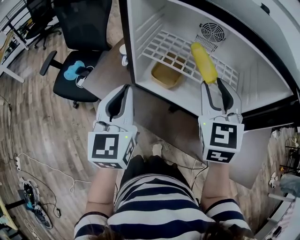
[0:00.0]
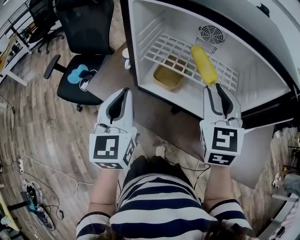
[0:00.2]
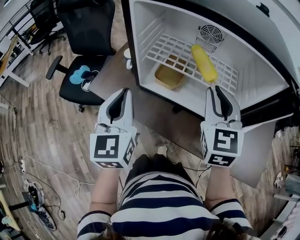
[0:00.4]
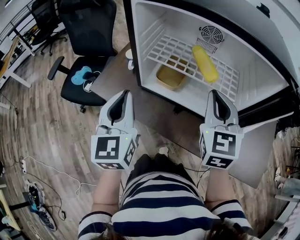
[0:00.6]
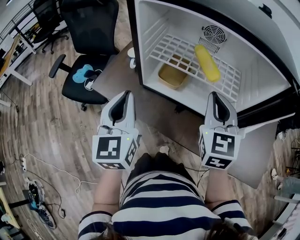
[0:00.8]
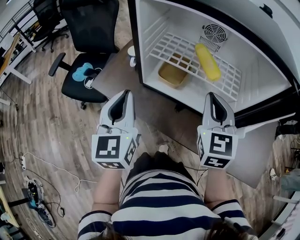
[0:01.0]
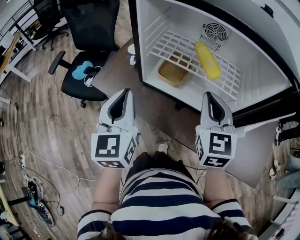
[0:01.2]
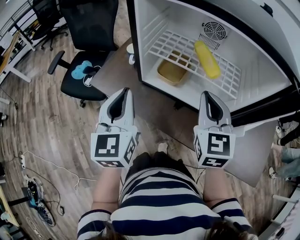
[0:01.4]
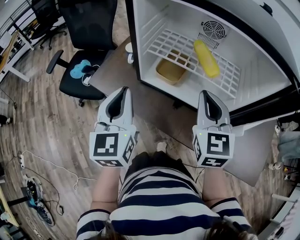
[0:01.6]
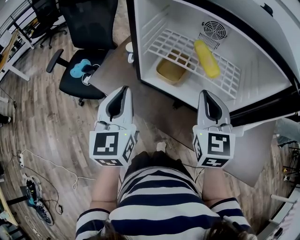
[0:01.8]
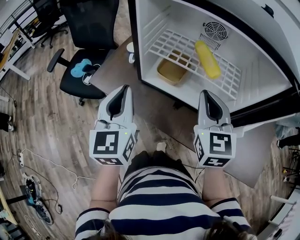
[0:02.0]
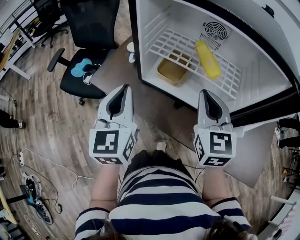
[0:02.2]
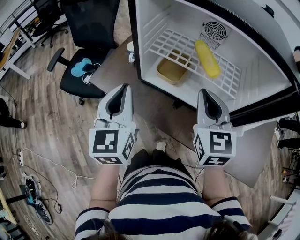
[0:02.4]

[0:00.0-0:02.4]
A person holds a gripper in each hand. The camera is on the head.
0:00.0 to 0:01.2: The right gripper shifts by approximately 5 cm, and closes.
0:01.2 to 0:02.4: The grippers move only a little.

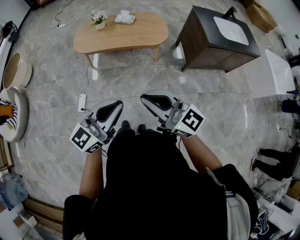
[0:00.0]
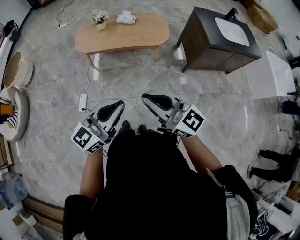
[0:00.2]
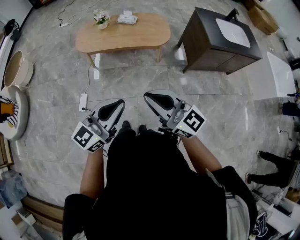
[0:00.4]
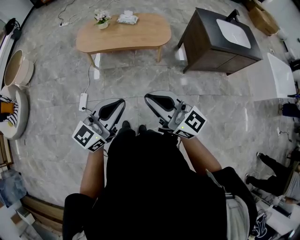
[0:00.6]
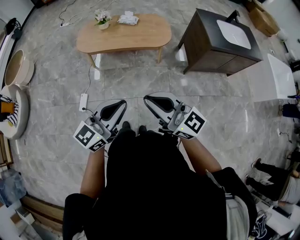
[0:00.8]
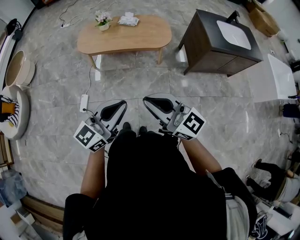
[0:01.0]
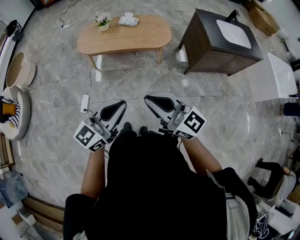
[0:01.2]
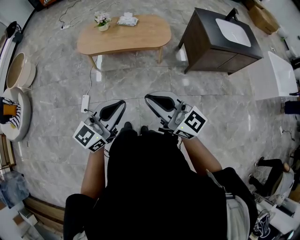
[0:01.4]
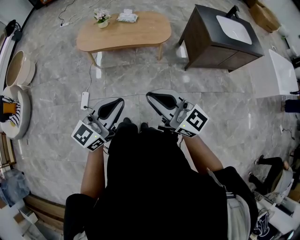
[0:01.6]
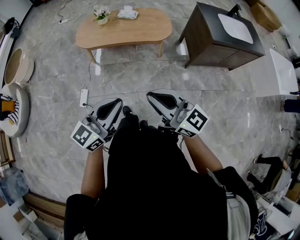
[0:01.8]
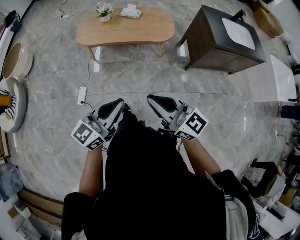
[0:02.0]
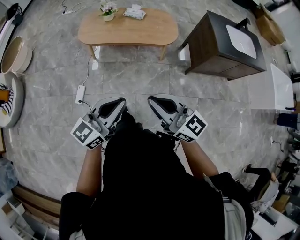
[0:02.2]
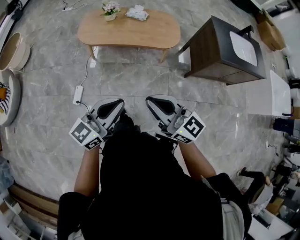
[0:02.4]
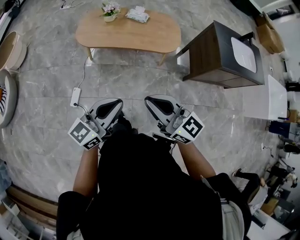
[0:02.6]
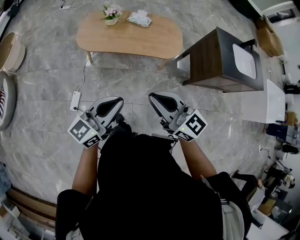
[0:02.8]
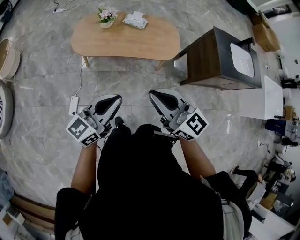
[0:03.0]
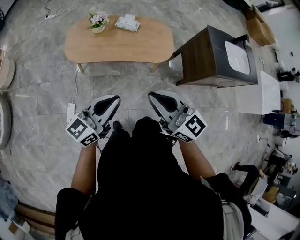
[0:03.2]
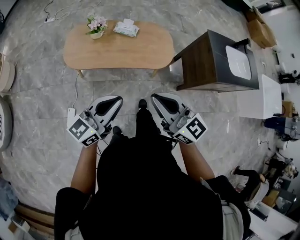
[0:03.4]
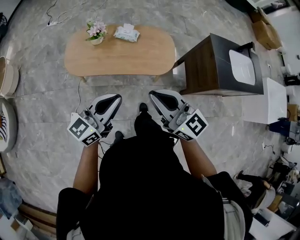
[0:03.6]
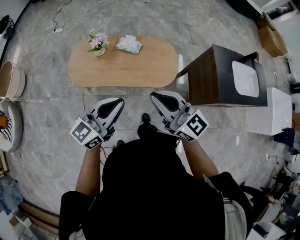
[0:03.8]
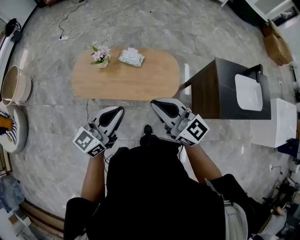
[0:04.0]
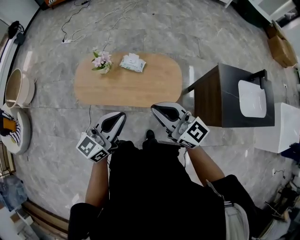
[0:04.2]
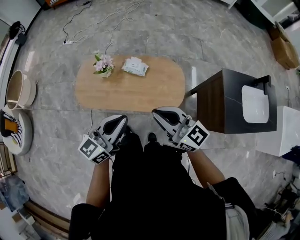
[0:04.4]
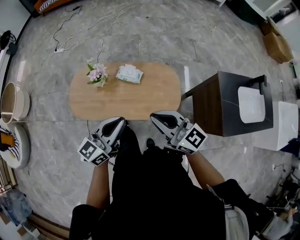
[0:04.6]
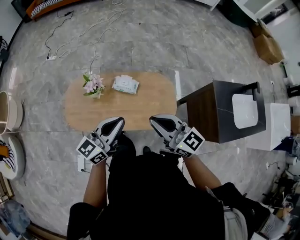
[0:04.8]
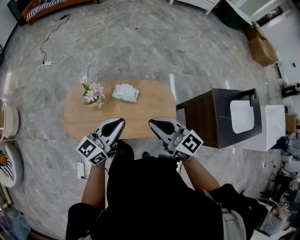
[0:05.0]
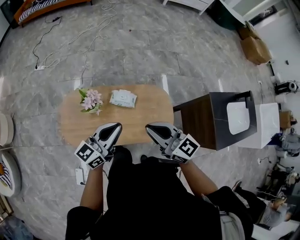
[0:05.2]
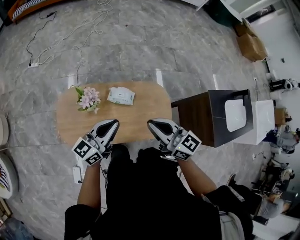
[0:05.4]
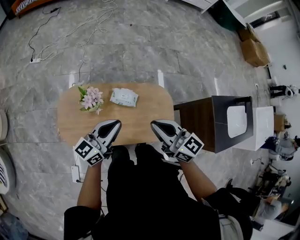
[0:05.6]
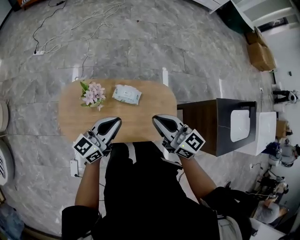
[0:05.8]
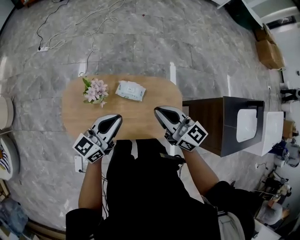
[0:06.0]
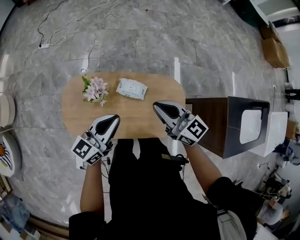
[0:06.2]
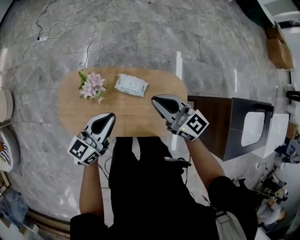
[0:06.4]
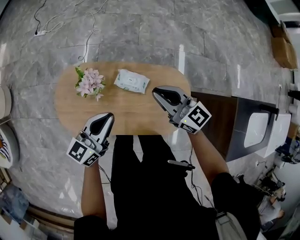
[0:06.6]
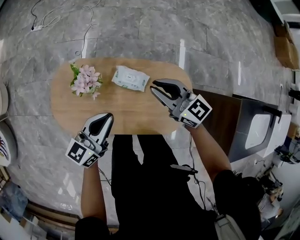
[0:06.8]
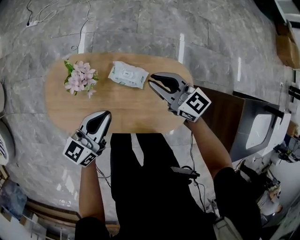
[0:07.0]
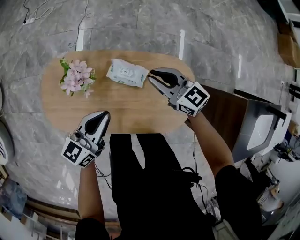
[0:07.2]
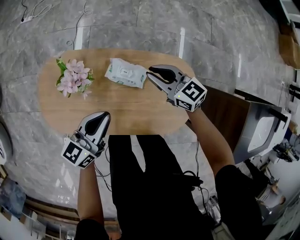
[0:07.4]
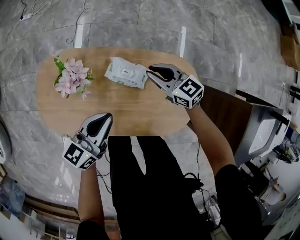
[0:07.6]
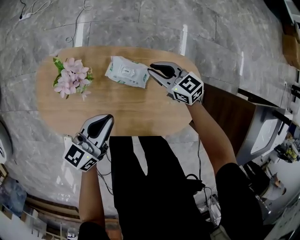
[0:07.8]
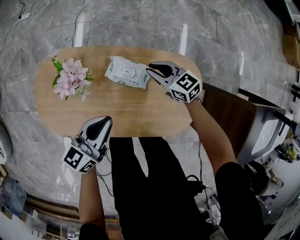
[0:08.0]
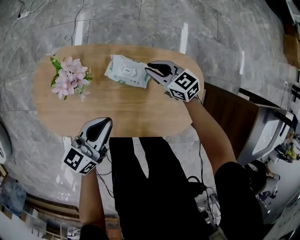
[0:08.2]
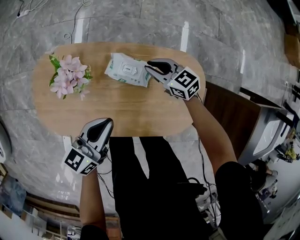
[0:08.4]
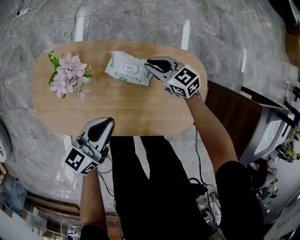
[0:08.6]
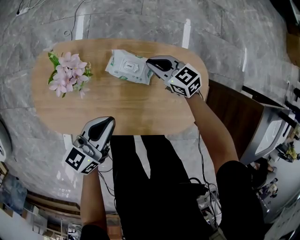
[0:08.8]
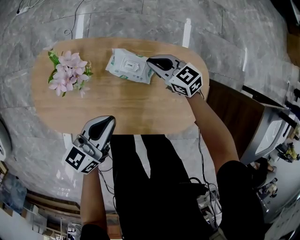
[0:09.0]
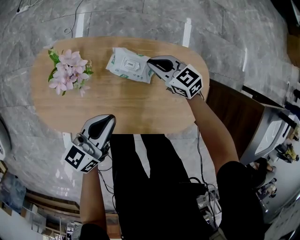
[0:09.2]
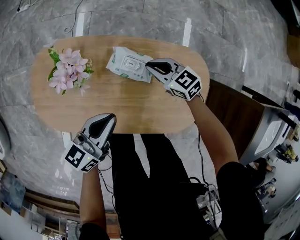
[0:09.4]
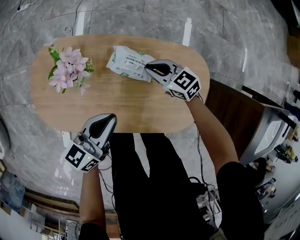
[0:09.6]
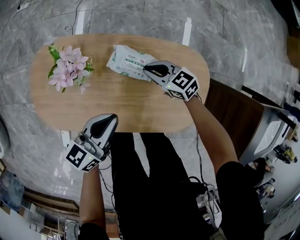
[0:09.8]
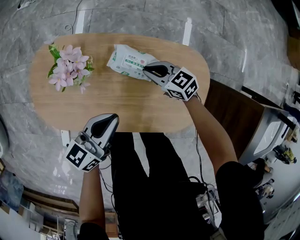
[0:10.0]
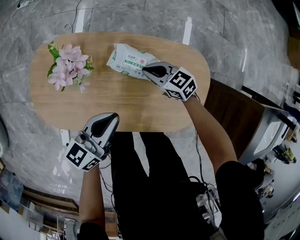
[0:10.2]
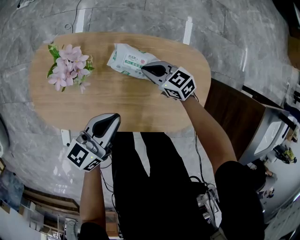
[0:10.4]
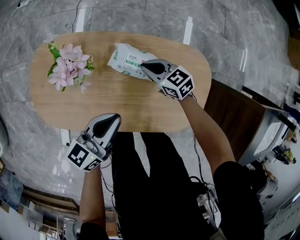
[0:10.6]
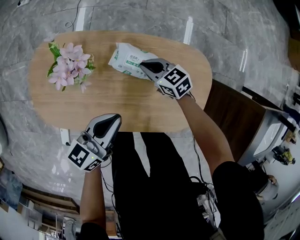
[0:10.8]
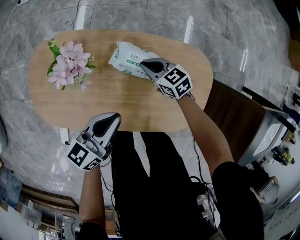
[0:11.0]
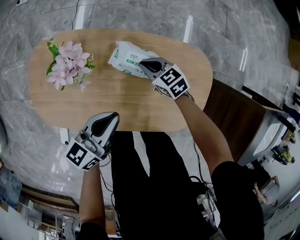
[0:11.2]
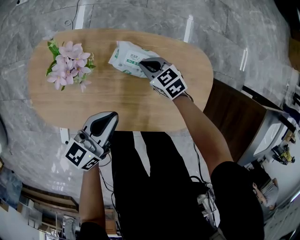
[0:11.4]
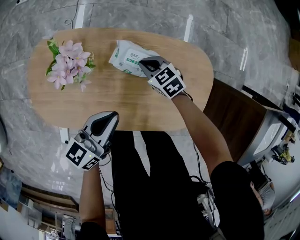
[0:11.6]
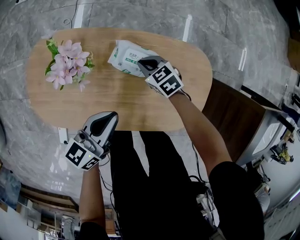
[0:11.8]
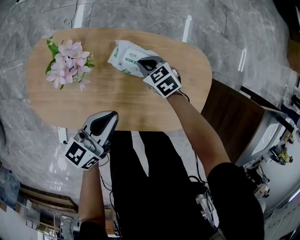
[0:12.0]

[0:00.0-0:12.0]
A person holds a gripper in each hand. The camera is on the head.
0:00.0 to 0:01.6: The grippers make only small movements.
0:01.6 to 0:03.0: Both grippers travel together forward, some 25 cm.
0:03.0 to 0:04.4: Both grippers travel together forward and to the right, about 35 cm.
0:04.4 to 0:06.0: The right gripper goes roughly 30 cm forward; the left gripper is displaced forward and to the left by roughly 30 cm.
0:06.0 to 0:07.6: The right gripper travels downward and forward by roughly 40 cm, and changes its angle by about 20 degrees. The left gripper heads downward, covering roughly 25 cm.
0:07.6 to 0:09.0: The left gripper shifts by about 5 cm. Meanwhile the right gripper moves downward, some 10 cm.
0:09.0 to 0:10.4: The right gripper shifts by some 5 cm.
0:10.4 to 0:12.0: The right gripper shifts by some 5 cm, and swivels roughly 20 degrees.

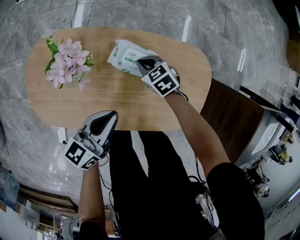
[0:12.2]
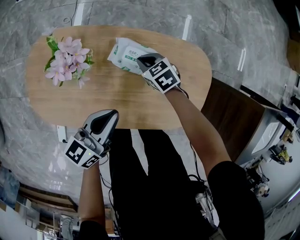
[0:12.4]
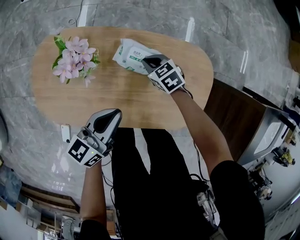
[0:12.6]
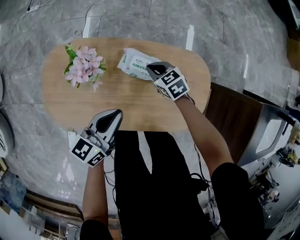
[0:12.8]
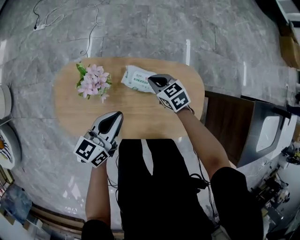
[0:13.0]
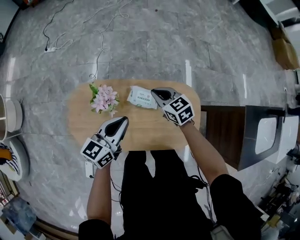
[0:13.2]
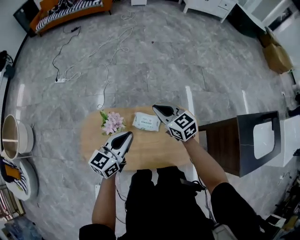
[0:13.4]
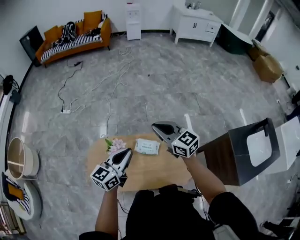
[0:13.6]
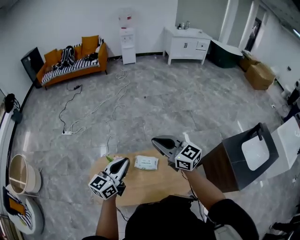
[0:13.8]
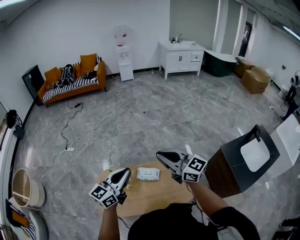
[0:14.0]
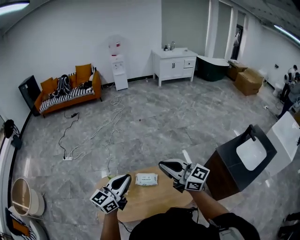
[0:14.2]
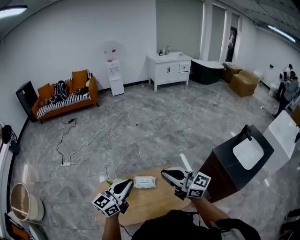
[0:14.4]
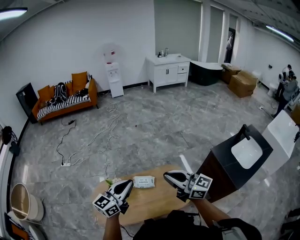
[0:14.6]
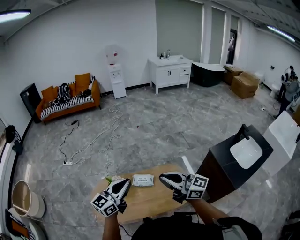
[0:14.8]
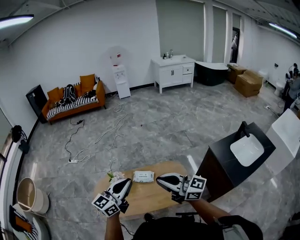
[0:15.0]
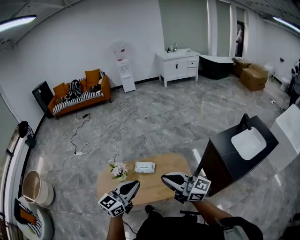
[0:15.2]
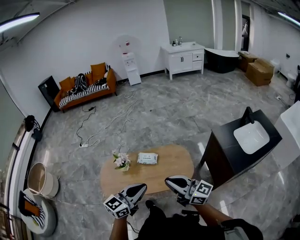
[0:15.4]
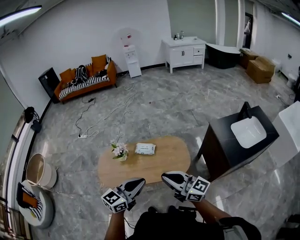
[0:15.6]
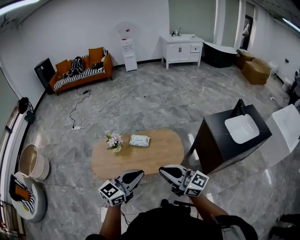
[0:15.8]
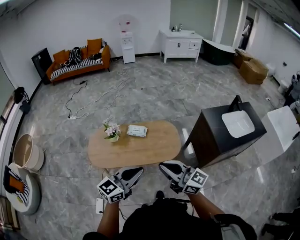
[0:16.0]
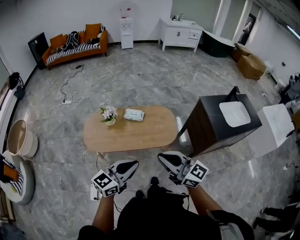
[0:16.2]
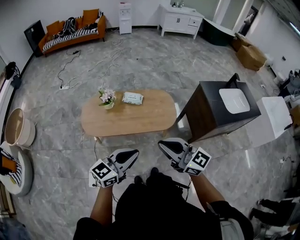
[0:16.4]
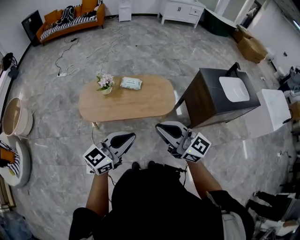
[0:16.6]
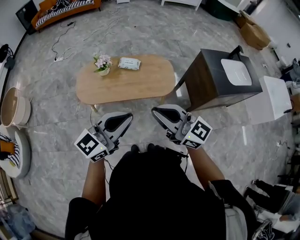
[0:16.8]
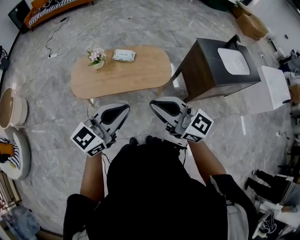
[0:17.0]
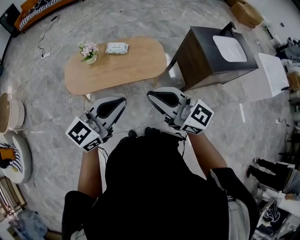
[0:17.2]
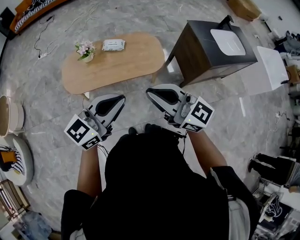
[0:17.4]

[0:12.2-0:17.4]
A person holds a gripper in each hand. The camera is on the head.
0:12.2 to 0:14.0: The left gripper heads upward, covering some 50 cm, and changes its angle by roughly 40 degrees. Meanwhile the right gripper travels upward by some 70 cm, and tilts its fingers roughly 60 degrees upward.
0:14.0 to 0:15.6: The left gripper travels backward and to the right by some 40 cm. Meanwhile the right gripper is displaced backward by some 40 cm.
0:15.6 to 0:17.4: Both grippers move backward, some 15 cm.

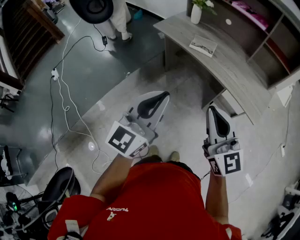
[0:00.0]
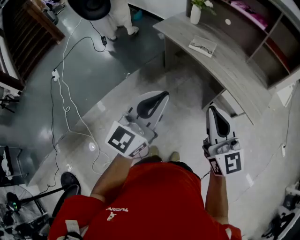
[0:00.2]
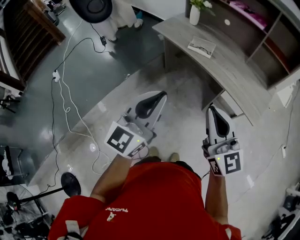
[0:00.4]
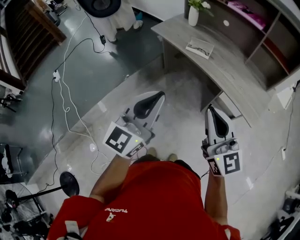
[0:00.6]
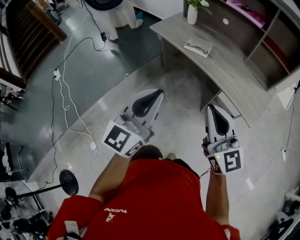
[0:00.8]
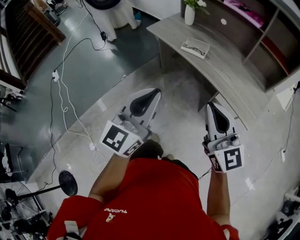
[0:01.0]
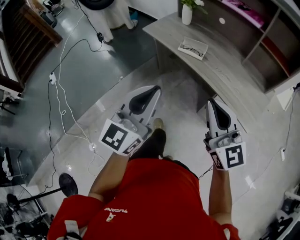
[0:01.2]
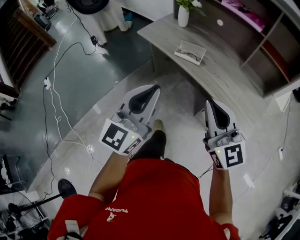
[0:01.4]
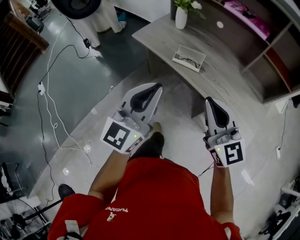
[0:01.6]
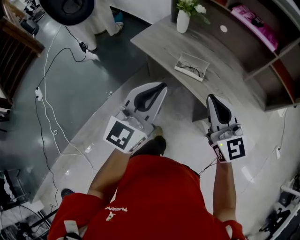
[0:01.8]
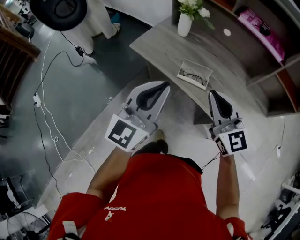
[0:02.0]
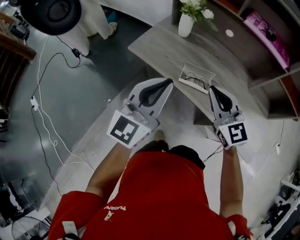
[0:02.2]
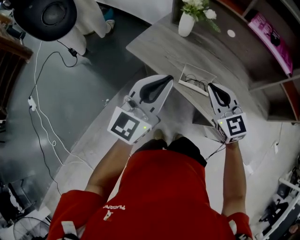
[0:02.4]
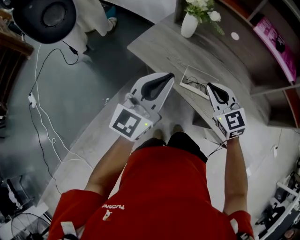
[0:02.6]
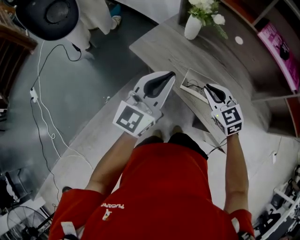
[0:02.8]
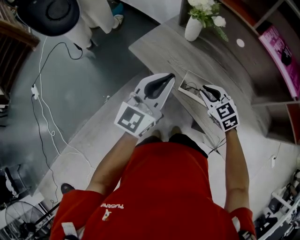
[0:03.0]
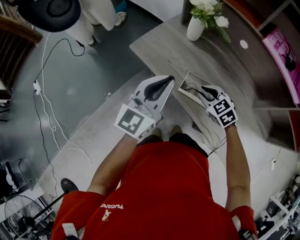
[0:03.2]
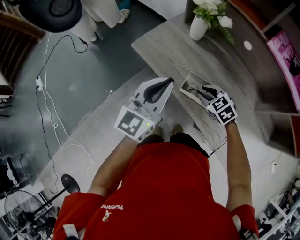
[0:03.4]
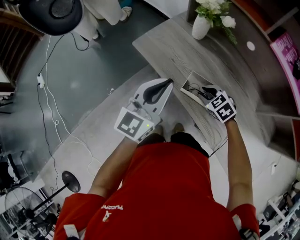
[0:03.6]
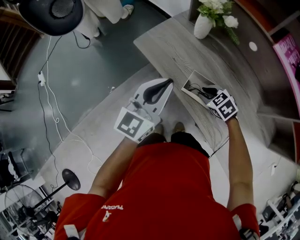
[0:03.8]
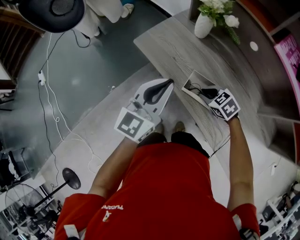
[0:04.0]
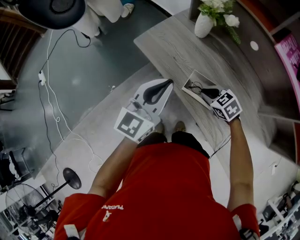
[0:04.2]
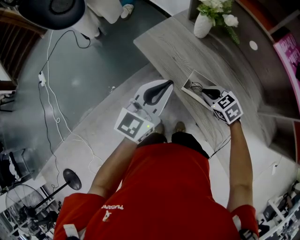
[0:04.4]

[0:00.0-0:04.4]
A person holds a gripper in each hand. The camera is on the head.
0:00.0 to 0:01.4: The two grippers go some 15 cm forward and to the right.
0:01.4 to 0:03.0: The right gripper moves forward and downward, approximately 40 cm, and angles its fingers downward, by some 40 degrees. The left gripper heads forward, covering about 35 cm.
0:03.0 to 0:04.4: The right gripper moves downward, approximately 5 cm, and turns by roughly 20 degrees.
